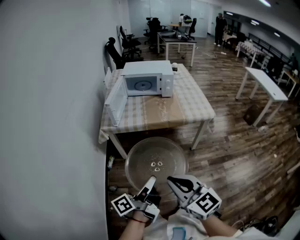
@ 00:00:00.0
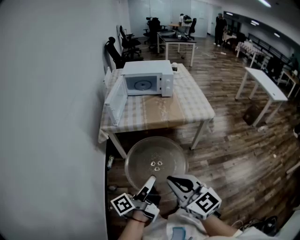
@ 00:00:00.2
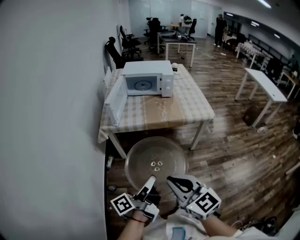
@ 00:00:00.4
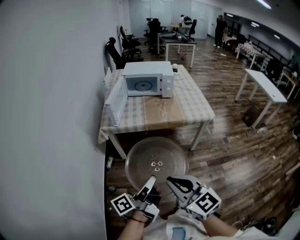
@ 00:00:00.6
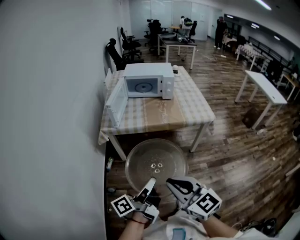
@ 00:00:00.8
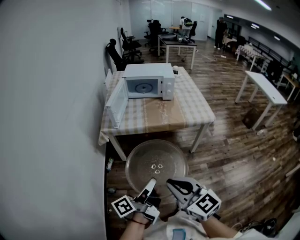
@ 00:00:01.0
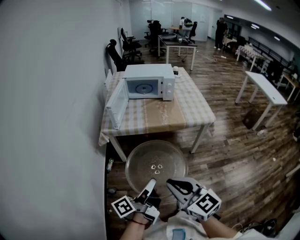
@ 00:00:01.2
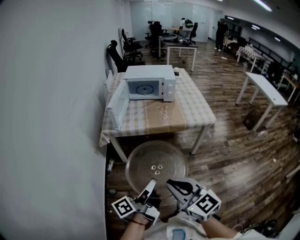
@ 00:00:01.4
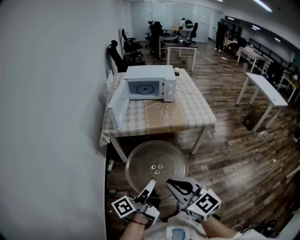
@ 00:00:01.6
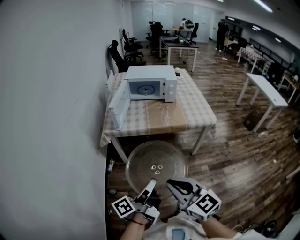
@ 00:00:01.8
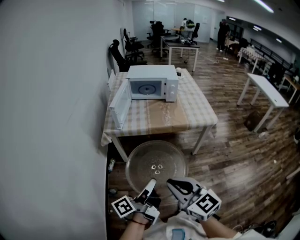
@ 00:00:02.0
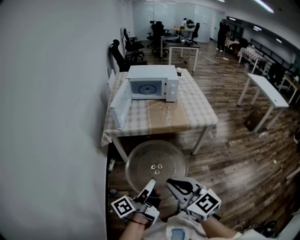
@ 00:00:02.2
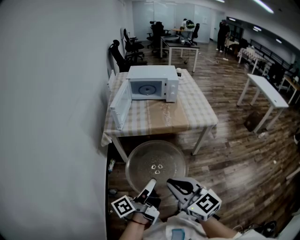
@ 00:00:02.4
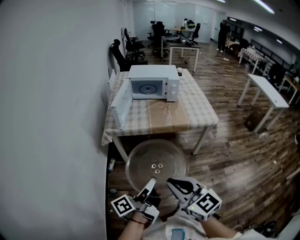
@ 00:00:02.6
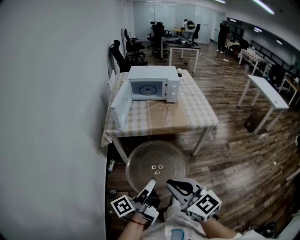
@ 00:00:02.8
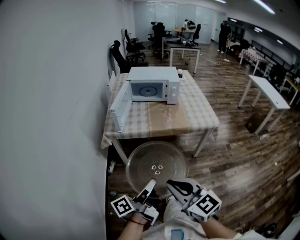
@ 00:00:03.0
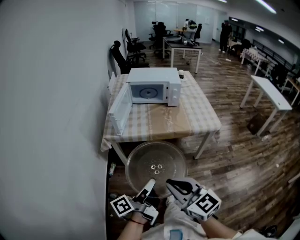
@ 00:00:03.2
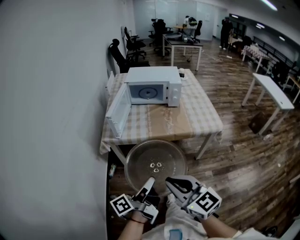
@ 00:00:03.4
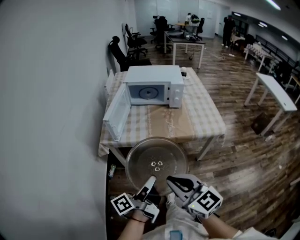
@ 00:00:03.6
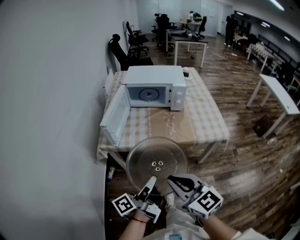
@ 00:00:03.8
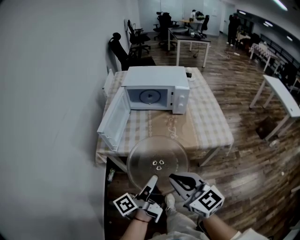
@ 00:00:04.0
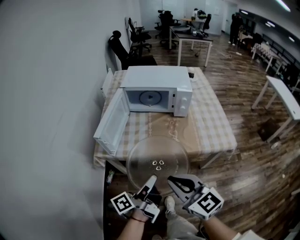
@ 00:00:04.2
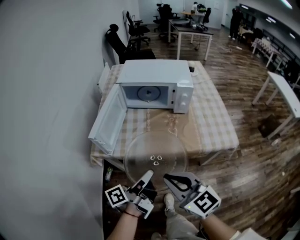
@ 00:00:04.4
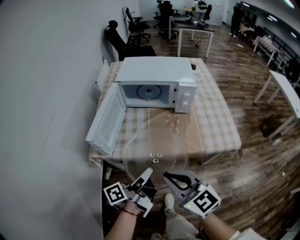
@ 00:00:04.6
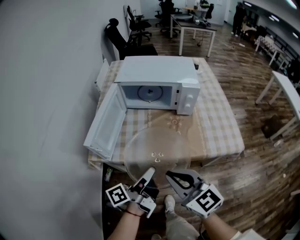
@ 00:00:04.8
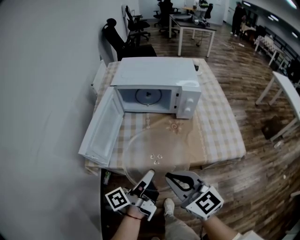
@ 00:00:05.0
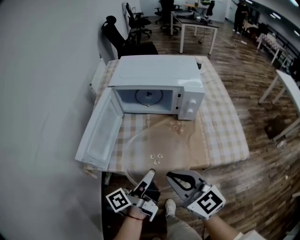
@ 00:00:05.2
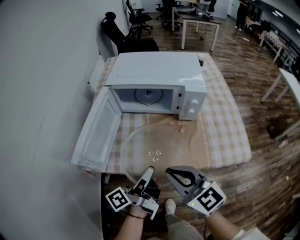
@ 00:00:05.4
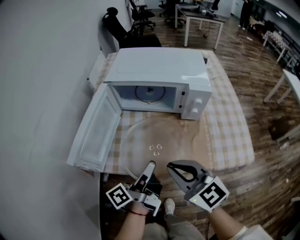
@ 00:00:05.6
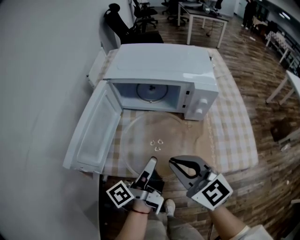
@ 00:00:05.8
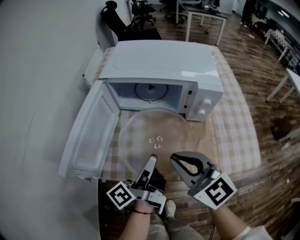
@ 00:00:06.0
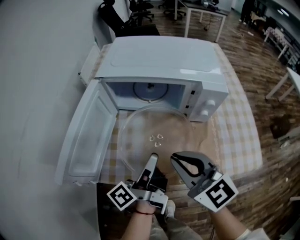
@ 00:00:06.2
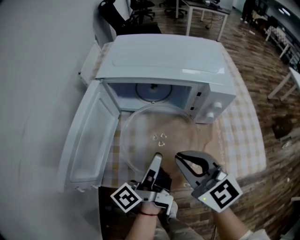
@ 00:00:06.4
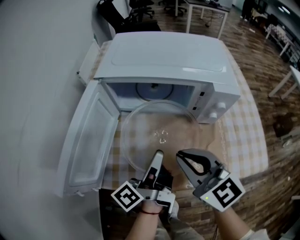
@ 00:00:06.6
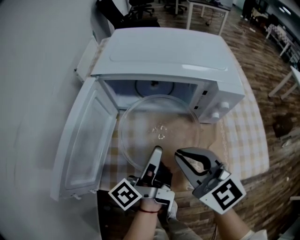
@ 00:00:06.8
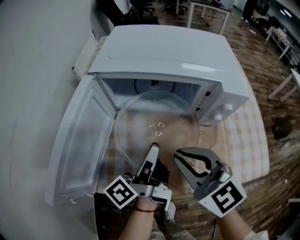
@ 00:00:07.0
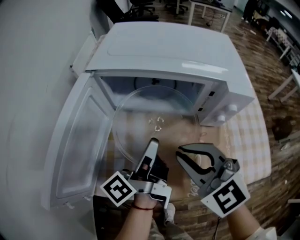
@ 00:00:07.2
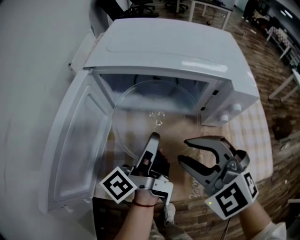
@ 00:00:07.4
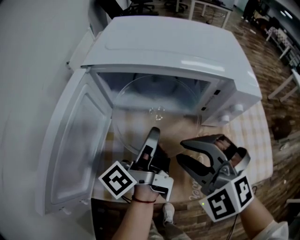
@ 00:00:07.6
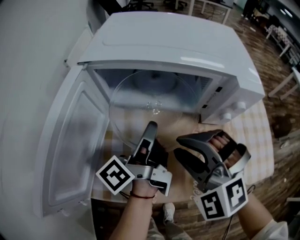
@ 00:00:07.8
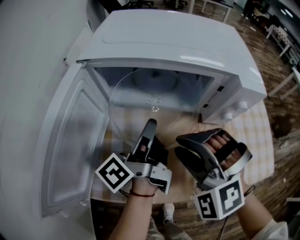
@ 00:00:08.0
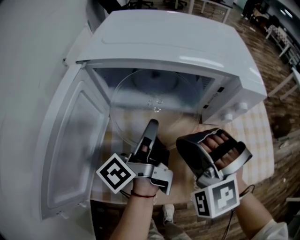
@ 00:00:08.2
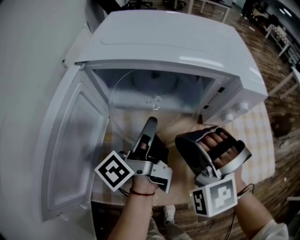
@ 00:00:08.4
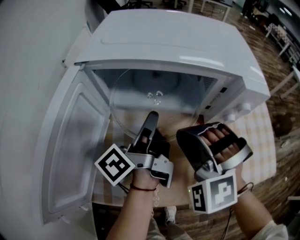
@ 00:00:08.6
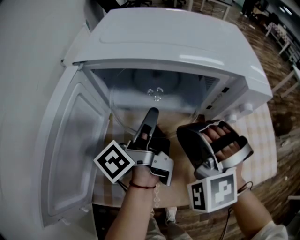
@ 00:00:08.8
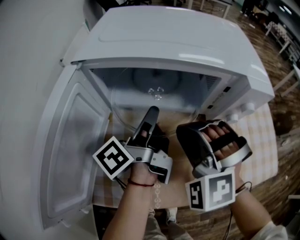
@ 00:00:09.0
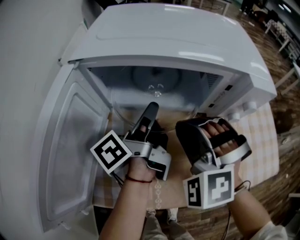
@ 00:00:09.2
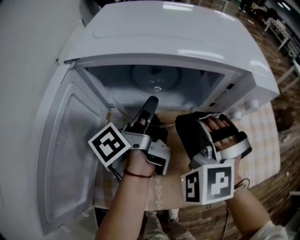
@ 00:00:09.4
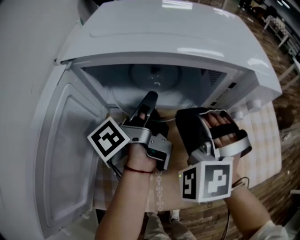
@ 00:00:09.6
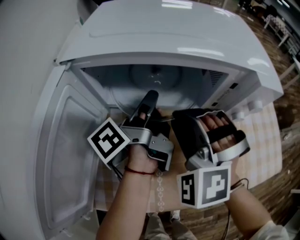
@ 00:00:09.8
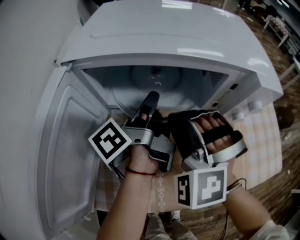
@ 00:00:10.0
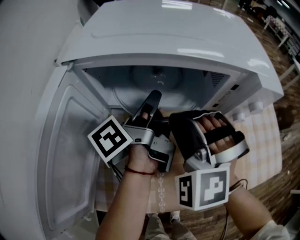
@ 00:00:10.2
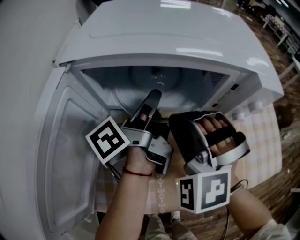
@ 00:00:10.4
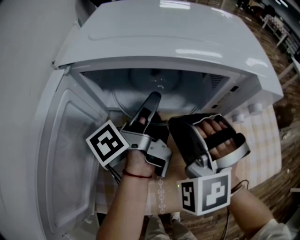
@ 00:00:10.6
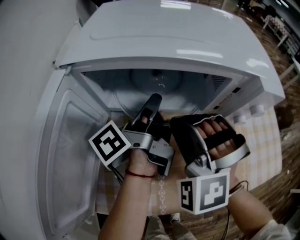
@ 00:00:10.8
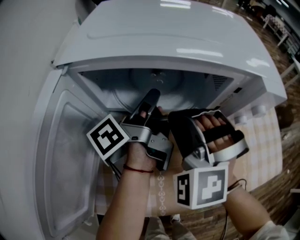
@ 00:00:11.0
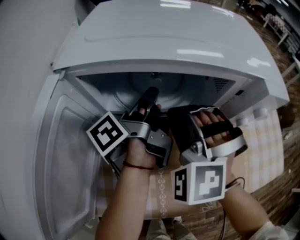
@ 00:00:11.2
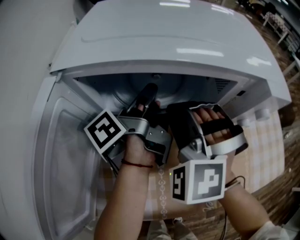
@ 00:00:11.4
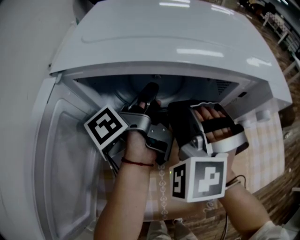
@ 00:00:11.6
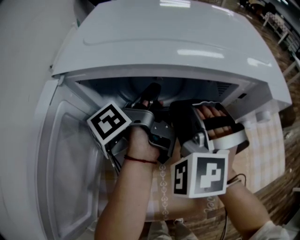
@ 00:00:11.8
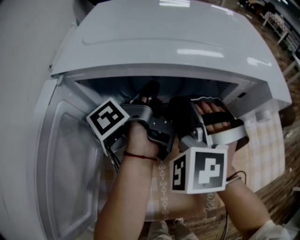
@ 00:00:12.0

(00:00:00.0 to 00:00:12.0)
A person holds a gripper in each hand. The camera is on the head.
00:00:03.0 - 00:00:04.4: The right gripper moves about 30 cm.
00:00:04.4 - 00:00:06.0: The right gripper ends up roughly 25 cm from where it was.
00:00:06.0 - 00:00:07.6: The right gripper changes place by about 10 cm, rotates around the line of its fingers by some 40 degrees, counterclockwise from behind, and opens its fingers.
00:00:07.6 - 00:00:09.0: The right gripper ends up roughly 5 cm from where it was, changes its angle by approximately 20 degrees, and closes up.
00:00:10.4 - 00:00:12.0: The right gripper moves roughly 5 cm.

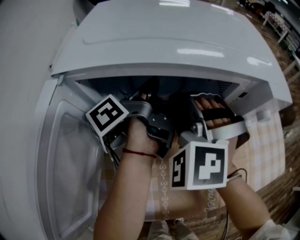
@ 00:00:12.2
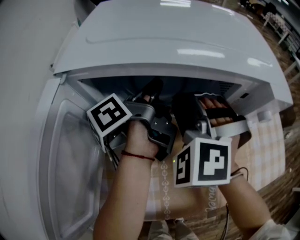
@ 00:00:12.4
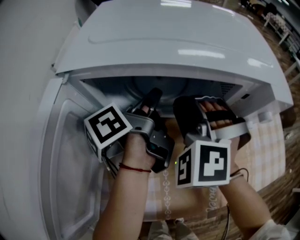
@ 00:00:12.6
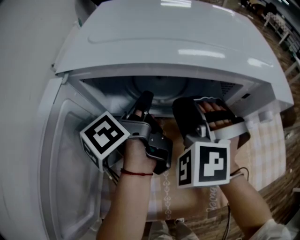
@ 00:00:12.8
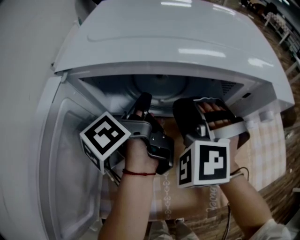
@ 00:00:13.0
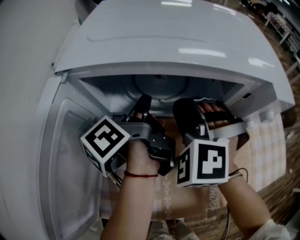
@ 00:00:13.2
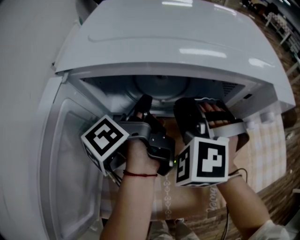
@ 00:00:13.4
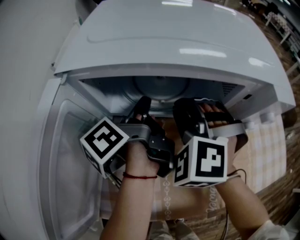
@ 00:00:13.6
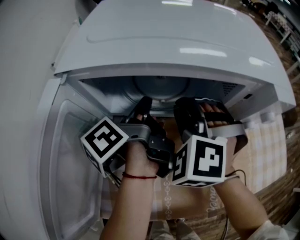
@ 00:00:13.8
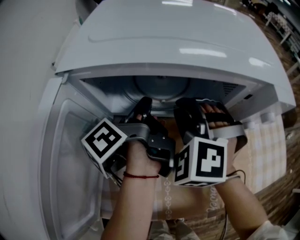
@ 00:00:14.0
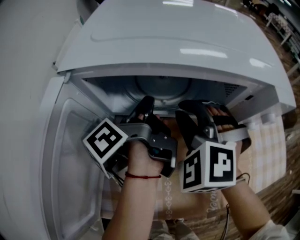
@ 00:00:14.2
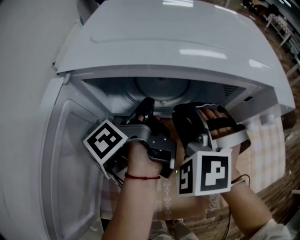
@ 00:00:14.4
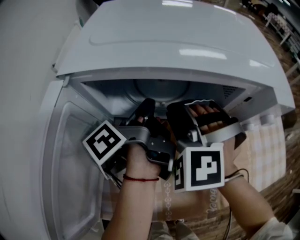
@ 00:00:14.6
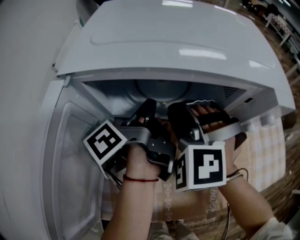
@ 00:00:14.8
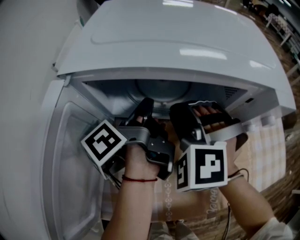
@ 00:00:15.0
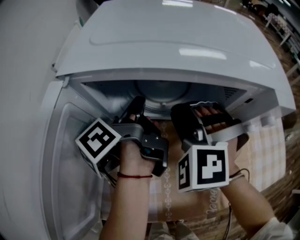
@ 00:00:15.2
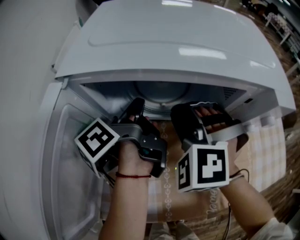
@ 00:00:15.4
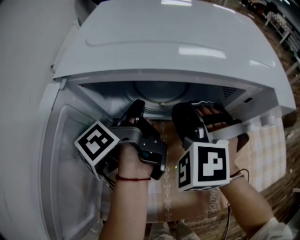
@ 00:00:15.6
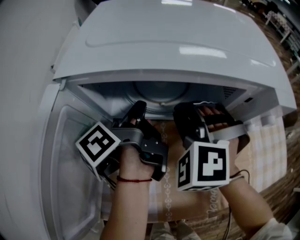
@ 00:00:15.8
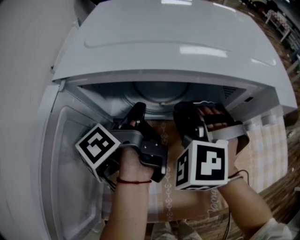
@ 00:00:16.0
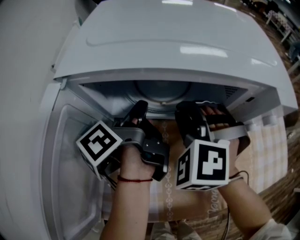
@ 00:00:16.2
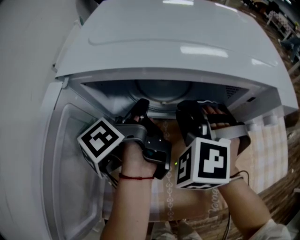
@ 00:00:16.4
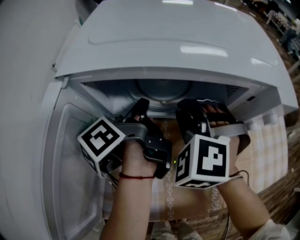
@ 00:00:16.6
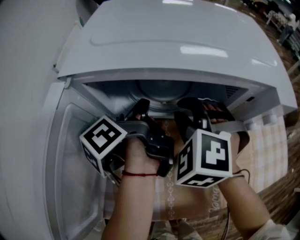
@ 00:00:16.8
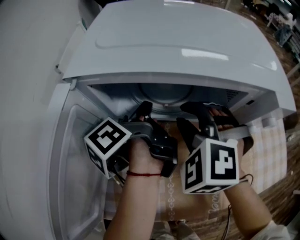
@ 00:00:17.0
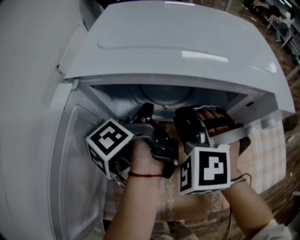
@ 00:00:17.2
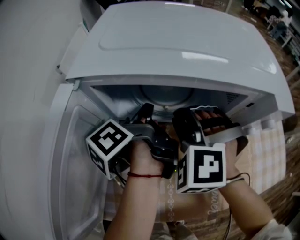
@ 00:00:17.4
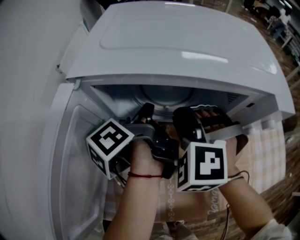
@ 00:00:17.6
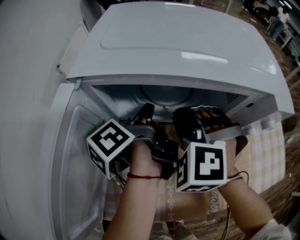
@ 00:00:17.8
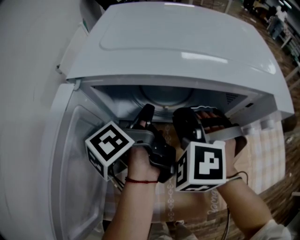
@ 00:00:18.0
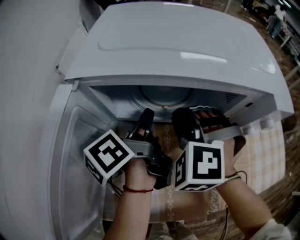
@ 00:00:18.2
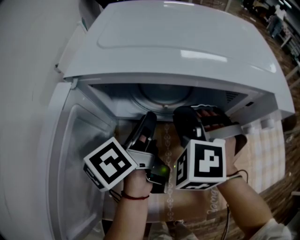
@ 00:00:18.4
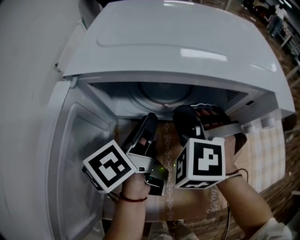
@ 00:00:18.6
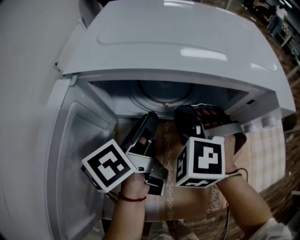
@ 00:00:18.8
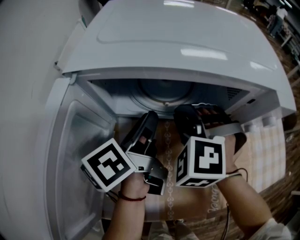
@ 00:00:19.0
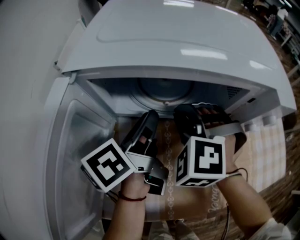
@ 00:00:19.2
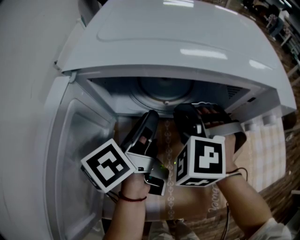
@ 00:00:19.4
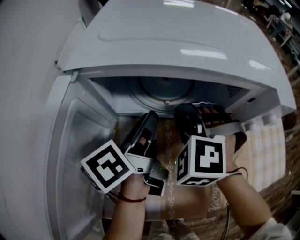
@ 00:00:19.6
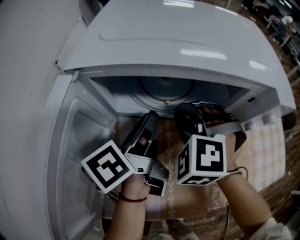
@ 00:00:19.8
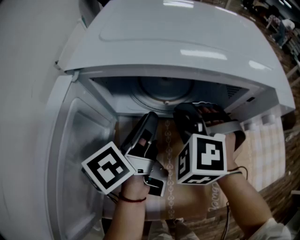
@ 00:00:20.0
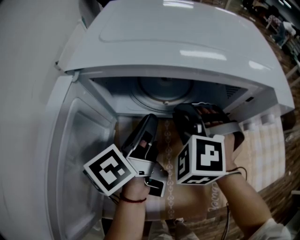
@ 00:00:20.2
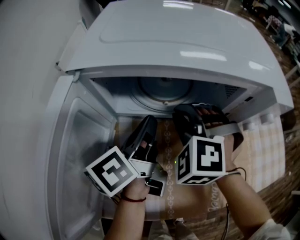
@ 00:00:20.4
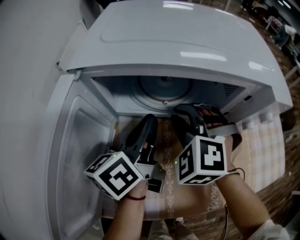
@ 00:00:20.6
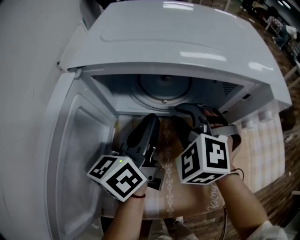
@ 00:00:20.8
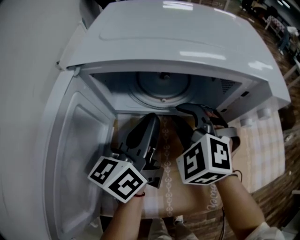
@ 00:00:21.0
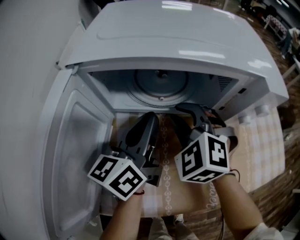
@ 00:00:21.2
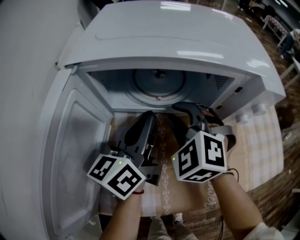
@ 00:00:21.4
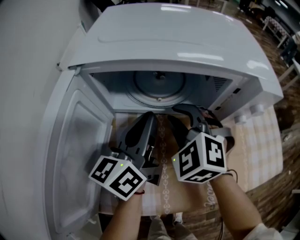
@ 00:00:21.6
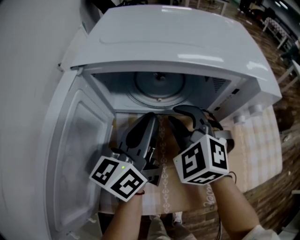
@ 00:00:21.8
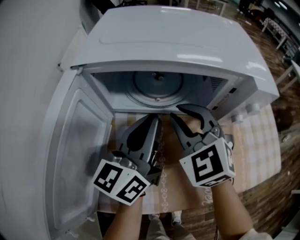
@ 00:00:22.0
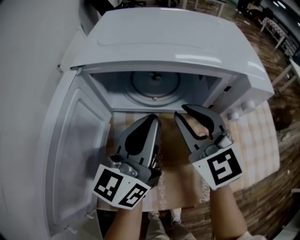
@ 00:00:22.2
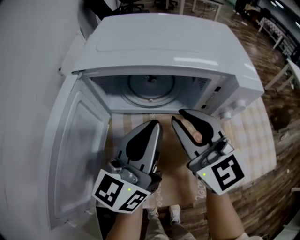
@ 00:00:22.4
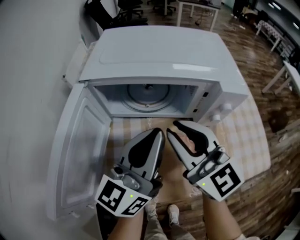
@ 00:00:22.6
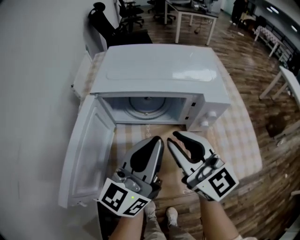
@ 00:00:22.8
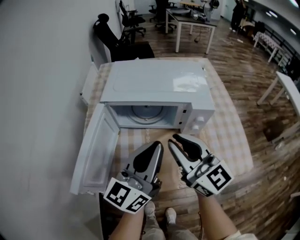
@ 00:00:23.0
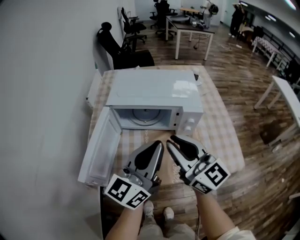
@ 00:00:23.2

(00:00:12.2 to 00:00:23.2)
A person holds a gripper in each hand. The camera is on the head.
00:00:15.4 - 00:00:17.0: The right gripper opens its fingers.
00:00:17.0 - 00:00:18.4: The right gripper closes up.
00:00:21.6 - 00:00:23.2: The right gripper moves upward, some 30 cm, and tips its fingers upward by some 50 degrees.

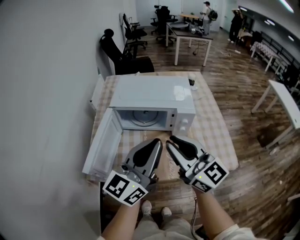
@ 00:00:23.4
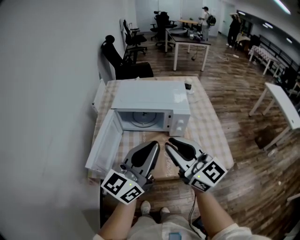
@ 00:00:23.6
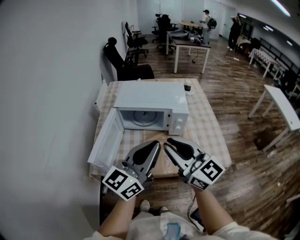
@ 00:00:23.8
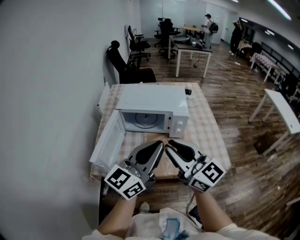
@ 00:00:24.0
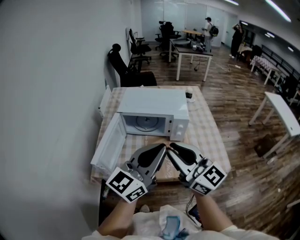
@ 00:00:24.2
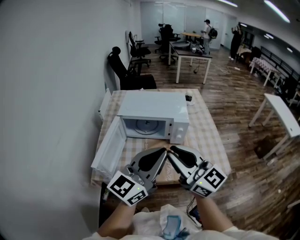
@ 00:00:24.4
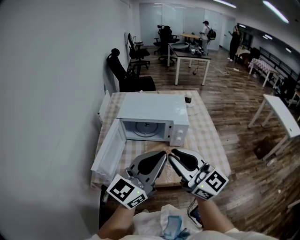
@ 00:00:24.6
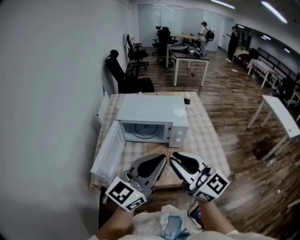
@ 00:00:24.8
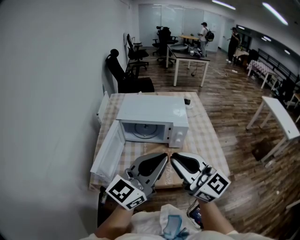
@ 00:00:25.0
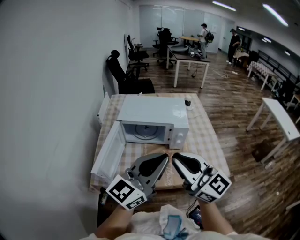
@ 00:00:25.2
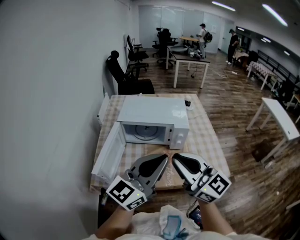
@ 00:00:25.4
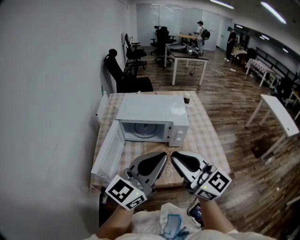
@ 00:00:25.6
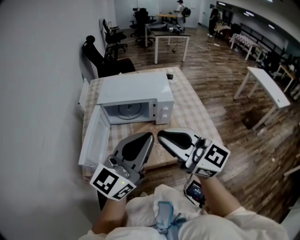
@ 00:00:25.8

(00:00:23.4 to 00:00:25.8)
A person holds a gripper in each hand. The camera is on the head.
00:00:23.4 - 00:00:24.6: The right gripper ends up some 10 cm from where it was.
